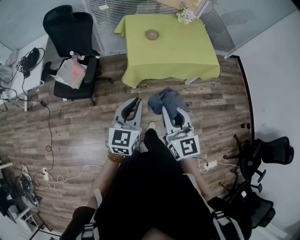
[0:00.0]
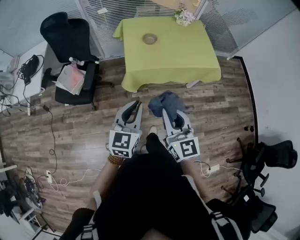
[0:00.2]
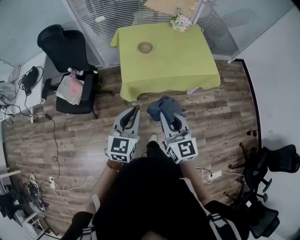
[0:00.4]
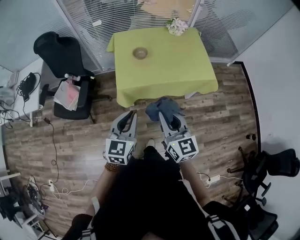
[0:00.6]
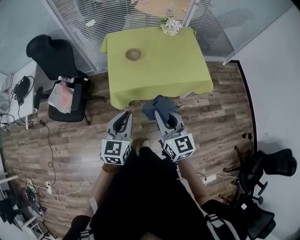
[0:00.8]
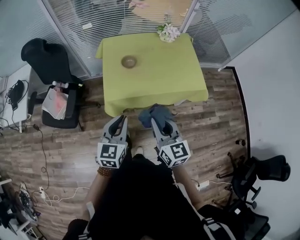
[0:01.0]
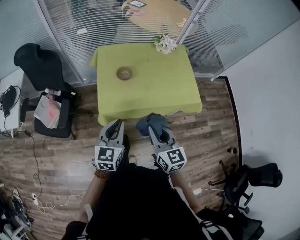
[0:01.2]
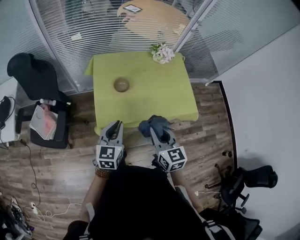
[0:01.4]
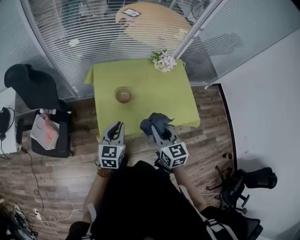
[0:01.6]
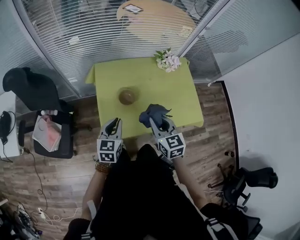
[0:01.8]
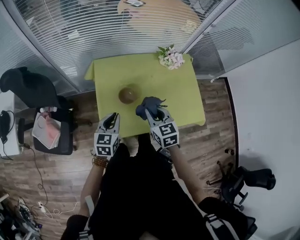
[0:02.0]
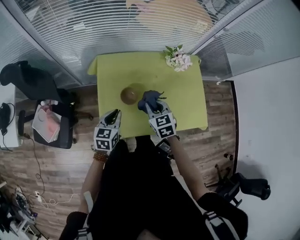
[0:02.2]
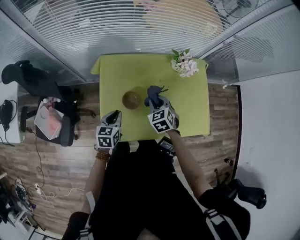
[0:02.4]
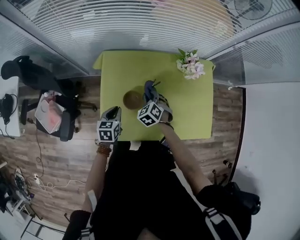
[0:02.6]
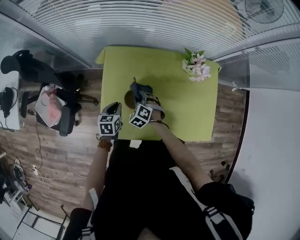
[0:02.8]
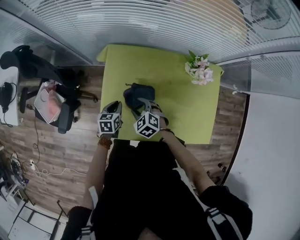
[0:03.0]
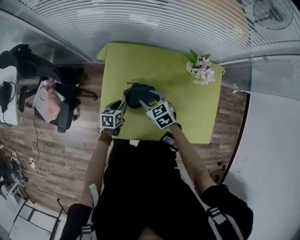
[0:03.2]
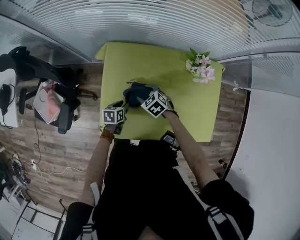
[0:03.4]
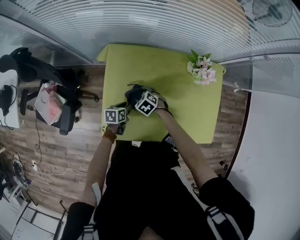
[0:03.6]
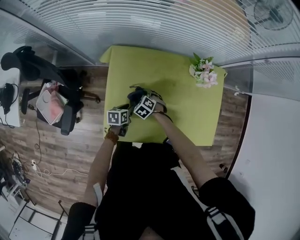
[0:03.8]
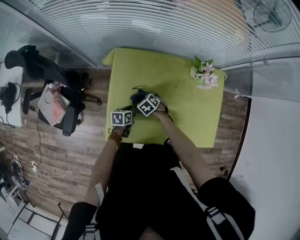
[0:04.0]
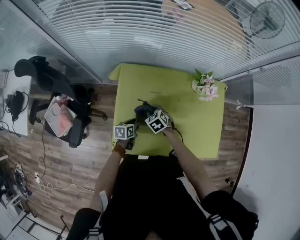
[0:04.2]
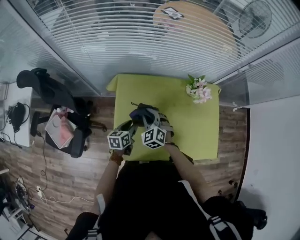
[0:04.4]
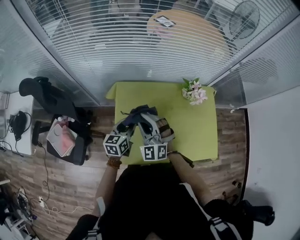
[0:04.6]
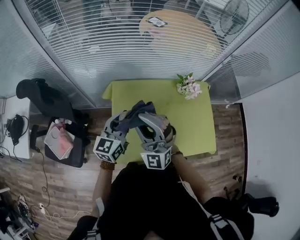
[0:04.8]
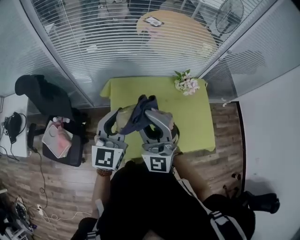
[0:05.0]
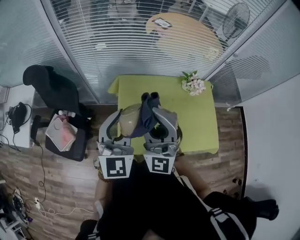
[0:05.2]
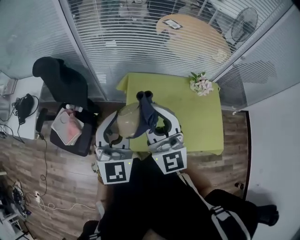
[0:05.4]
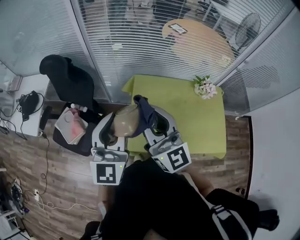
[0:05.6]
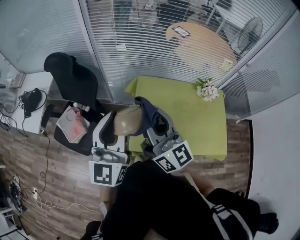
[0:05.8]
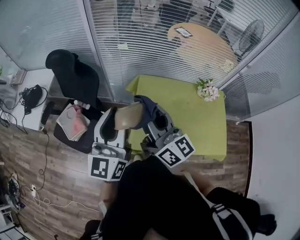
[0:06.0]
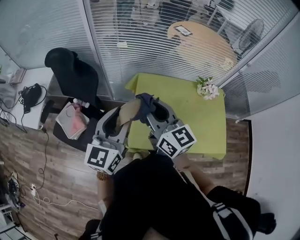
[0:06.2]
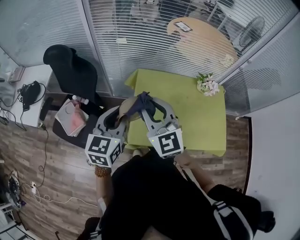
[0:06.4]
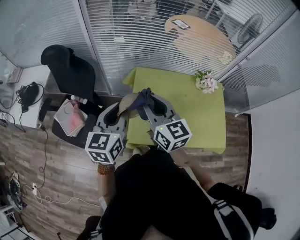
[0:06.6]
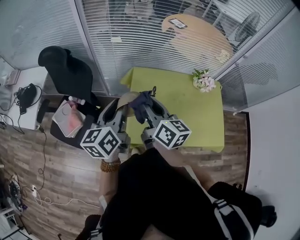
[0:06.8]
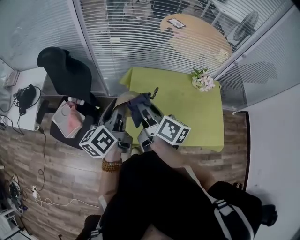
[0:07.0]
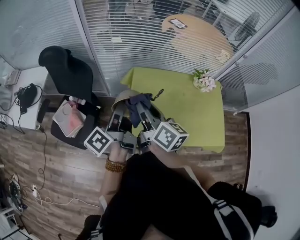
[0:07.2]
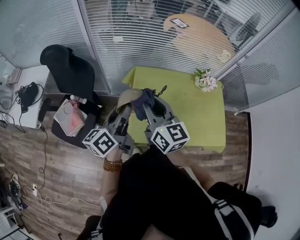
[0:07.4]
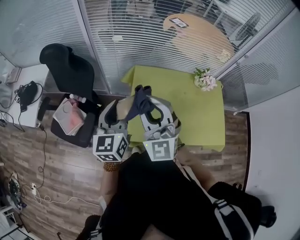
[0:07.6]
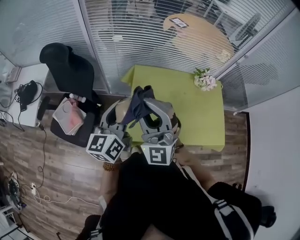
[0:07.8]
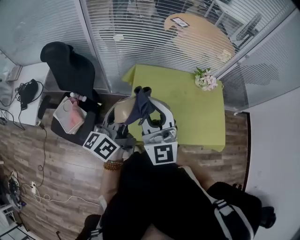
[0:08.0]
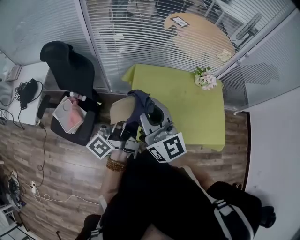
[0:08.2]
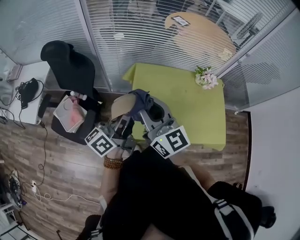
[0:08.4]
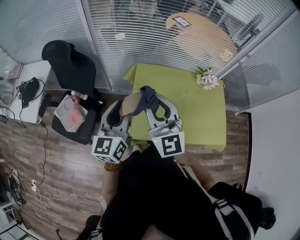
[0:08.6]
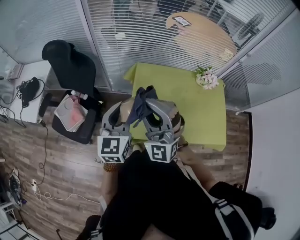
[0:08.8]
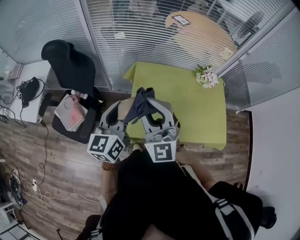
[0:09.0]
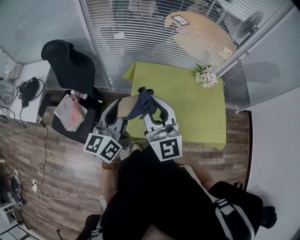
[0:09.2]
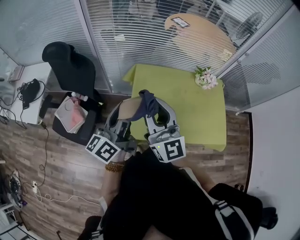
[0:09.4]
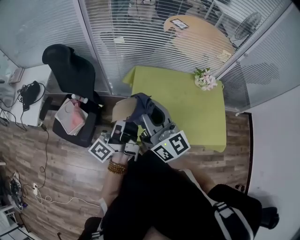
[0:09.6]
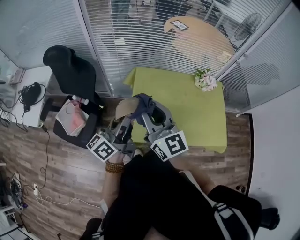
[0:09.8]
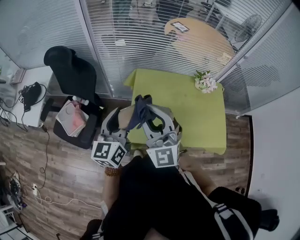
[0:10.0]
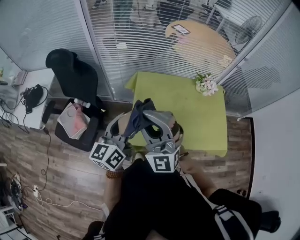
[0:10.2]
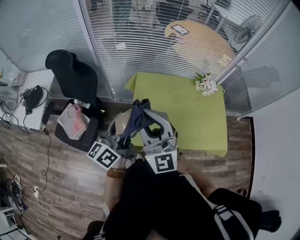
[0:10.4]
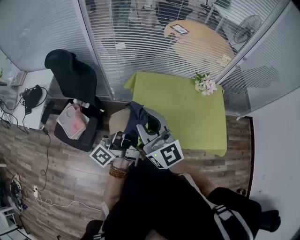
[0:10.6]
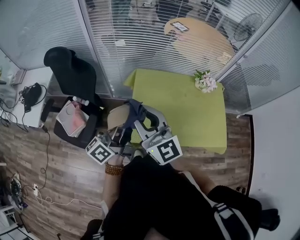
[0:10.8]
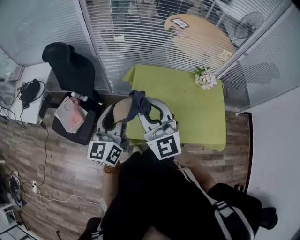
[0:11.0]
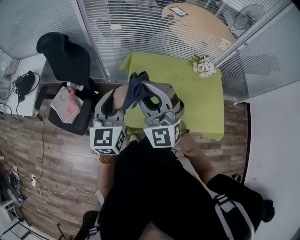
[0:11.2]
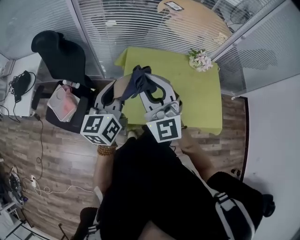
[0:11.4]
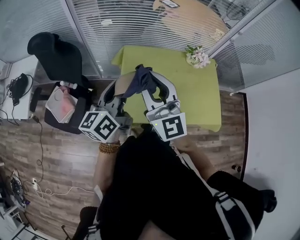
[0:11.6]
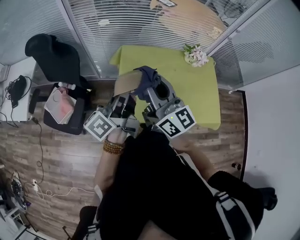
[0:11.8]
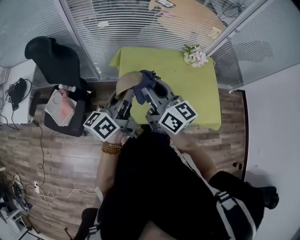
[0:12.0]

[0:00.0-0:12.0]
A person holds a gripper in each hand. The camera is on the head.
0:00.0 to 0:01.6: Both grippers travel together forward, some 40 cm. The right gripper rotates approximately 20 degrees.
0:01.6 to 0:03.0: The right gripper shifts about 30 cm downward, forward and to the left, tilts its fingers some 30 degrees downward, and opens its fingers; the left gripper travels downward and forward by some 30 cm, and turns by some 40 degrees.
0:03.0 to 0:04.4: The left gripper opens up, while the right gripper shifts some 10 cm forward and upward, turns by approximately 30 degrees, and closes its fingers.
0:04.4 to 0:06.0: The right gripper heads upward, backward and to the left, covering approximately 40 cm, and points its fingers about 50 degrees further upward. The left gripper heads upward and to the left, covering approximately 40 cm, and tips its fingers upward by roughly 50 degrees.
0:06.0 to 0:07.6: The left gripper goes roughly 10 cm downward. The right gripper goes downward and returns, approximately 10 cm each way, and rotates around the line of its fingers by about 70 degrees, counterclockwise from behind.
0:09.0 to 0:10.4: The left gripper rotates some 30 degrees.
0:10.4 to 0:12.0: The left gripper shifts approximately 5 cm to the right. Meanwhile the right gripper is displaced to the right and downward by approximately 10 cm, and twists roughly 50 degrees clockwise, seen from behind.

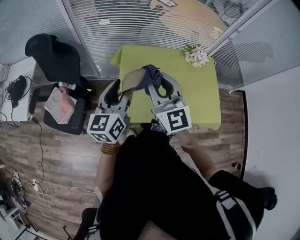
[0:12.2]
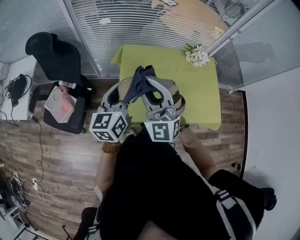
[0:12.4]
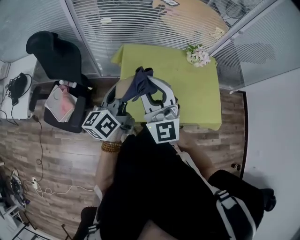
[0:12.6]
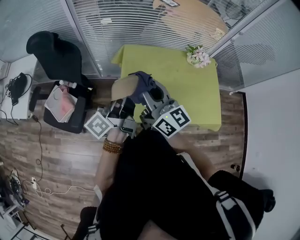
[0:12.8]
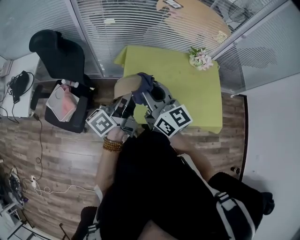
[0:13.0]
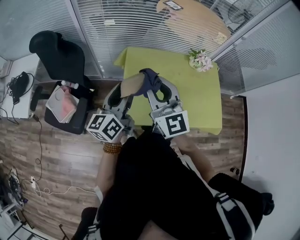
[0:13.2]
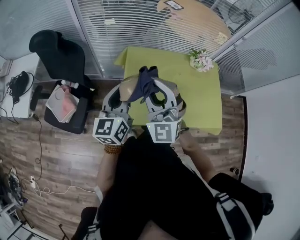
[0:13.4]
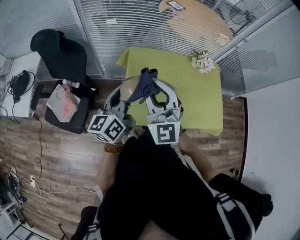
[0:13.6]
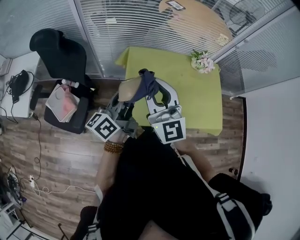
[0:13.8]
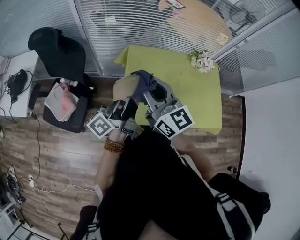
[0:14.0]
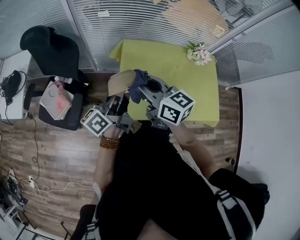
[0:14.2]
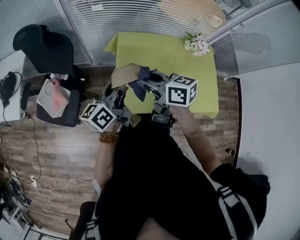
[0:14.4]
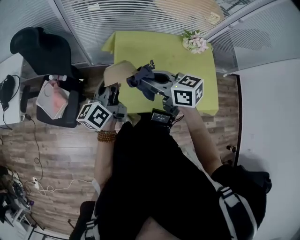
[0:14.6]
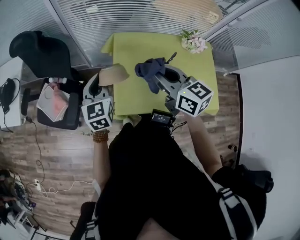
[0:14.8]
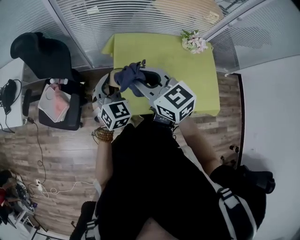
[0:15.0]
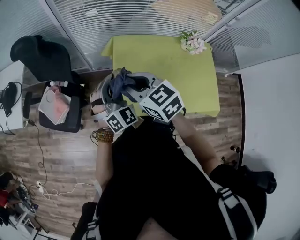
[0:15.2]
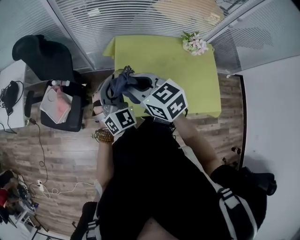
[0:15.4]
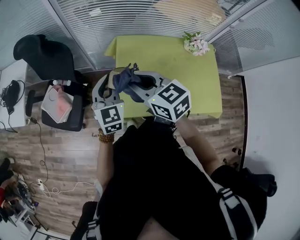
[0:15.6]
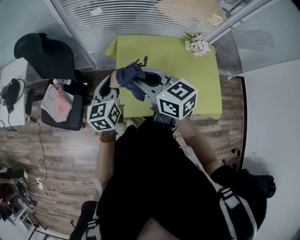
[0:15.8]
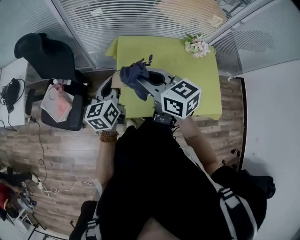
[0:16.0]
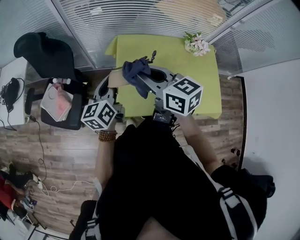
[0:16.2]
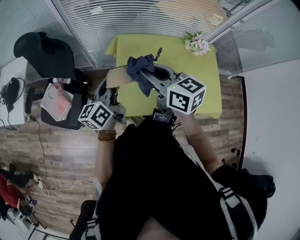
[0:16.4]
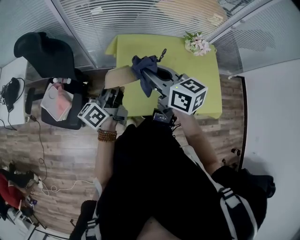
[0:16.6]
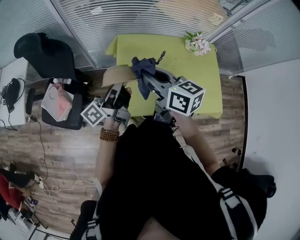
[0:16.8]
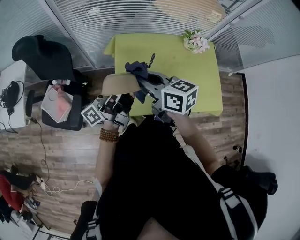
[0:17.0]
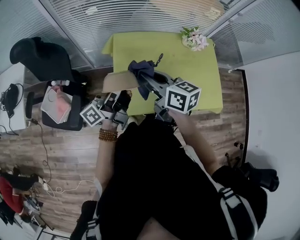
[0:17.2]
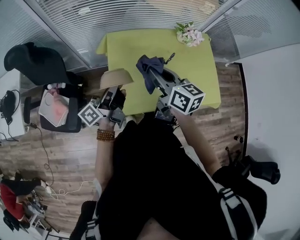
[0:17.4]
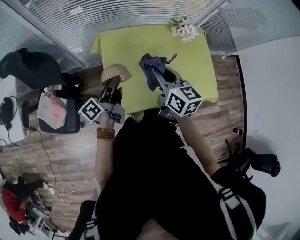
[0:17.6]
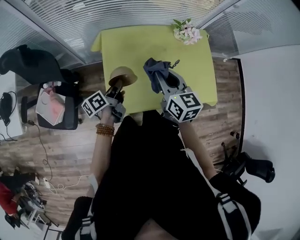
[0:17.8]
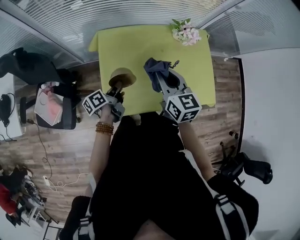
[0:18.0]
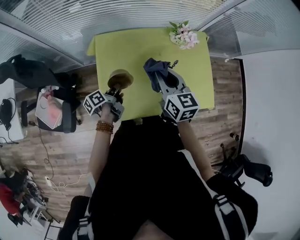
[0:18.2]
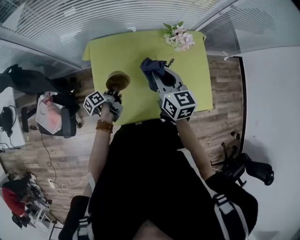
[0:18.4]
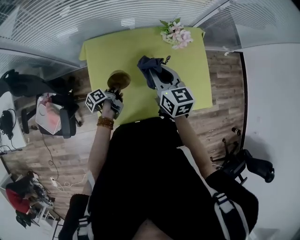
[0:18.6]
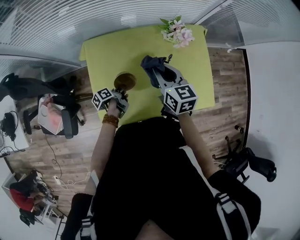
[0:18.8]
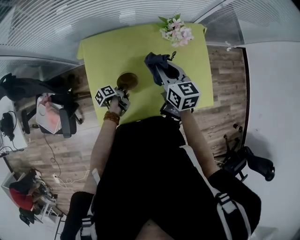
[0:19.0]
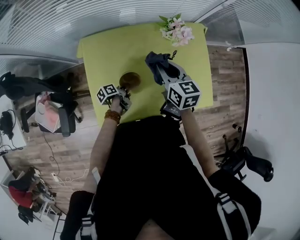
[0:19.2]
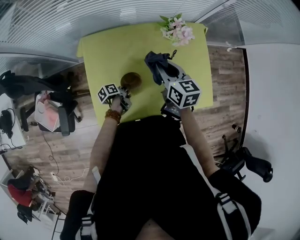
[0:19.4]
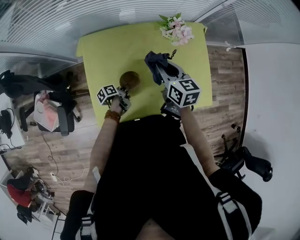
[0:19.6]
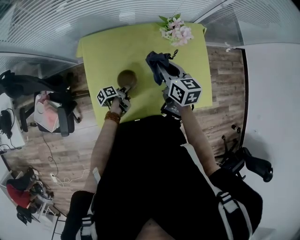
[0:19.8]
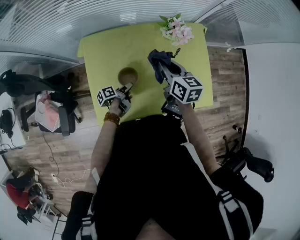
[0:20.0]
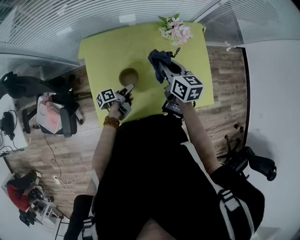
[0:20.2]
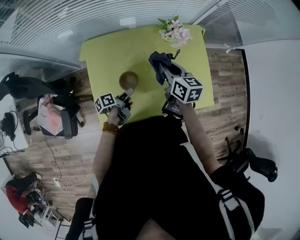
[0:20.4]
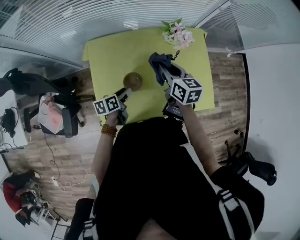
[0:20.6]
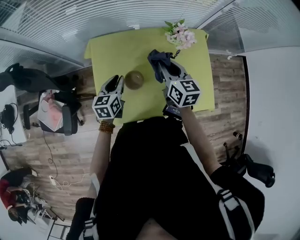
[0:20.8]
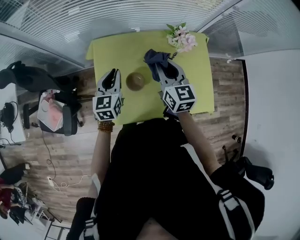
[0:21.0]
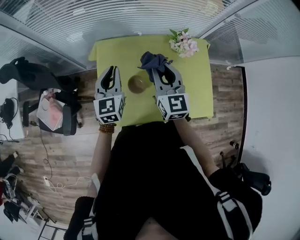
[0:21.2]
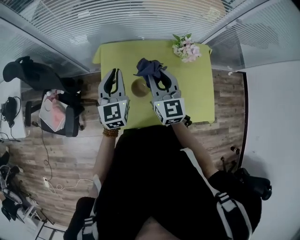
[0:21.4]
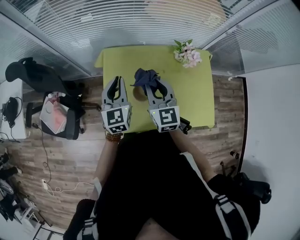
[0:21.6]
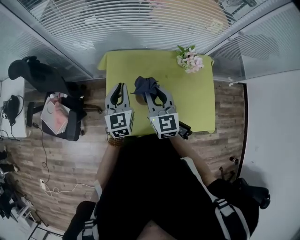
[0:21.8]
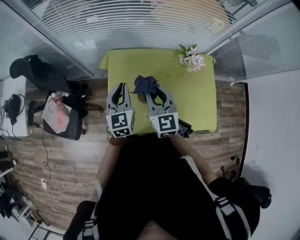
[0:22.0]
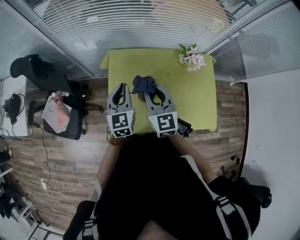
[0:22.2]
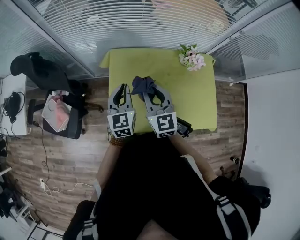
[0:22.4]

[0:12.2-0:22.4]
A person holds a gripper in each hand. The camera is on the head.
0:12.2 to 0:13.6: The left gripper closes; the right gripper changes its angle by about 20 degrees.
0:13.6 to 0:15.2: The right gripper travels downward by some 10 cm, and points its fingers some 30 degrees further downward. Meanwhile the left gripper travels downward by about 5 cm, and twists approximately 80 degrees clockwise, seen from behind.
0:15.2 to 0:16.6: The left gripper rotates around the line of its fingers by some 100 degrees, counterclockwise from behind, while the right gripper shifts some 5 cm to the right, and turns by approximately 30 degrees.
0:16.6 to 0:18.0: The right gripper goes some 15 cm to the right and downward, and changes its angle by approximately 30 degrees. The left gripper heads downward and to the right, covering roughly 20 cm, and tips its fingers downward by approximately 30 degrees.
0:18.0 to 0:19.4: The right gripper travels forward, to the right and downward by about 15 cm, while the left gripper heads downward and to the right, covering approximately 20 cm, and rotates some 30 degrees.
0:19.4 to 0:21.0: The right gripper shifts some 5 cm upward; the left gripper shifts roughly 25 cm upward, rotates around the line of its fingers by roughly 70 degrees, clockwise from behind, and opens, then closes once more.
0:21.0 to 0:22.4: The right gripper heads to the left, covering roughly 15 cm. The left gripper ends up roughly 5 cm from where it was.

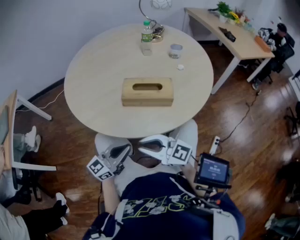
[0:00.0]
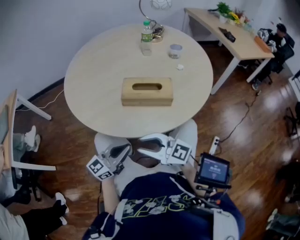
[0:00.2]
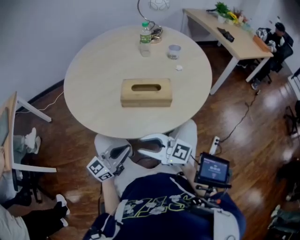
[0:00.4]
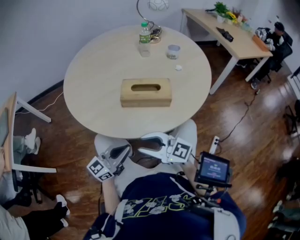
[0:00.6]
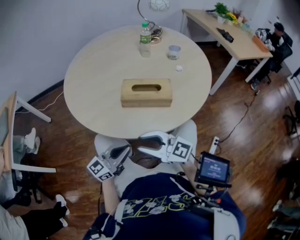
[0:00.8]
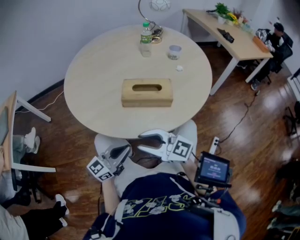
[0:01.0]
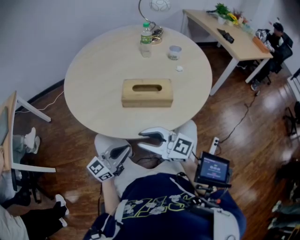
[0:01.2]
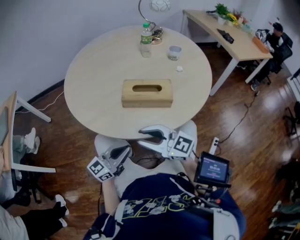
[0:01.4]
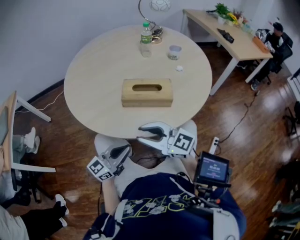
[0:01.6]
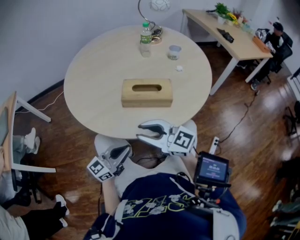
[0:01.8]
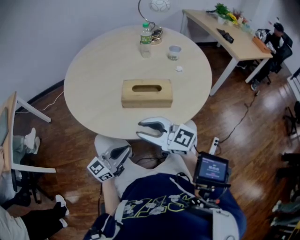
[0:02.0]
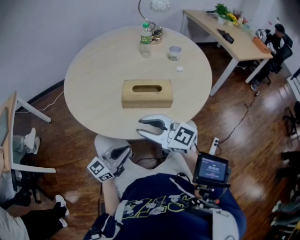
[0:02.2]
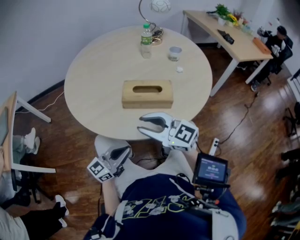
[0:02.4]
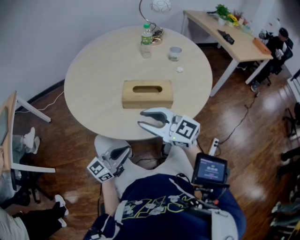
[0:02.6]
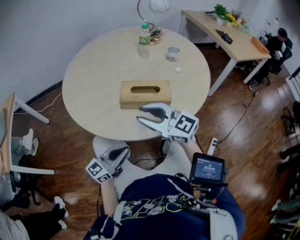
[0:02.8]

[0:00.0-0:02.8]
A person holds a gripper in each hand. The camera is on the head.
0:00.0 to 0:01.4: The grippers stay close to where they were, moving slightly.
0:01.4 to 0:02.8: The right gripper moves forward and upward, roughly 10 cm.
